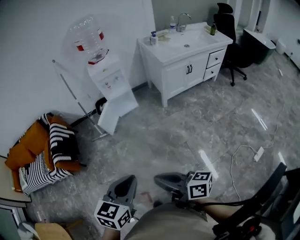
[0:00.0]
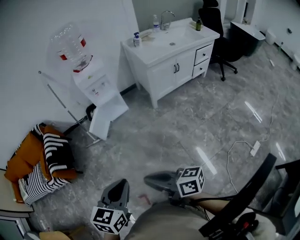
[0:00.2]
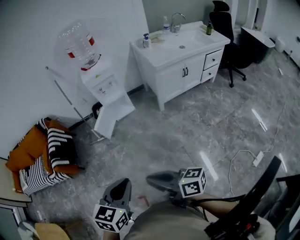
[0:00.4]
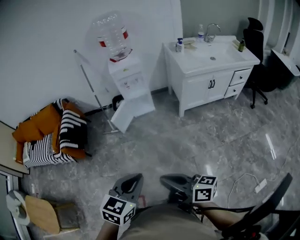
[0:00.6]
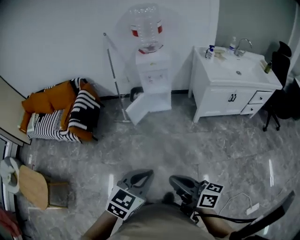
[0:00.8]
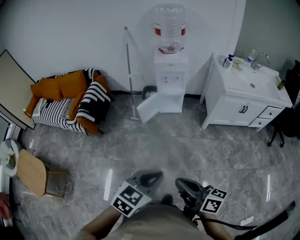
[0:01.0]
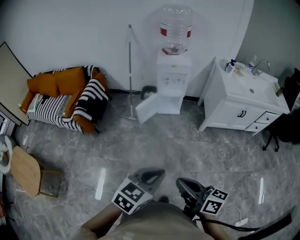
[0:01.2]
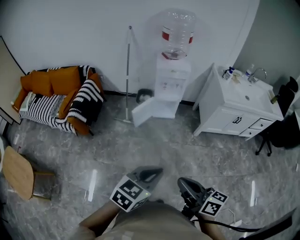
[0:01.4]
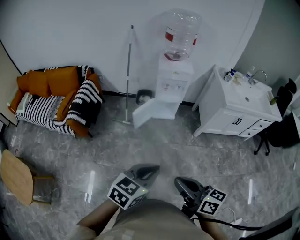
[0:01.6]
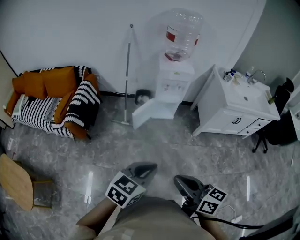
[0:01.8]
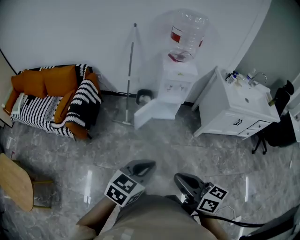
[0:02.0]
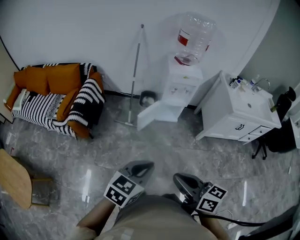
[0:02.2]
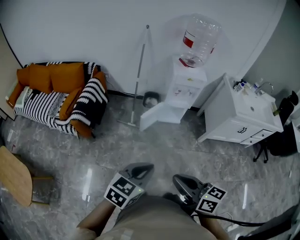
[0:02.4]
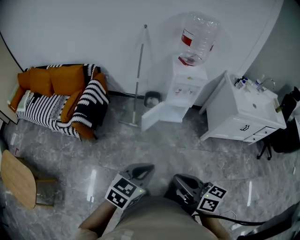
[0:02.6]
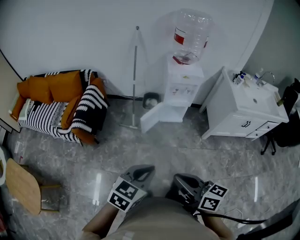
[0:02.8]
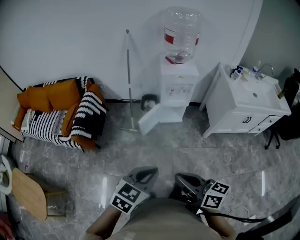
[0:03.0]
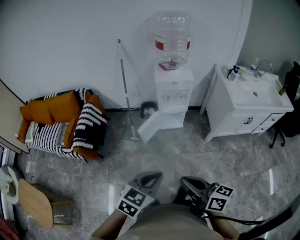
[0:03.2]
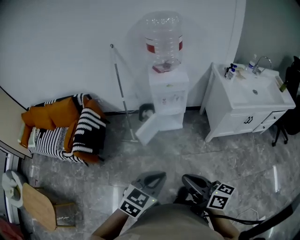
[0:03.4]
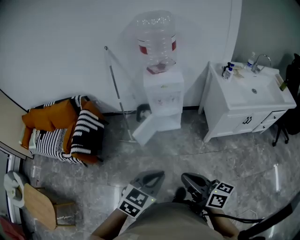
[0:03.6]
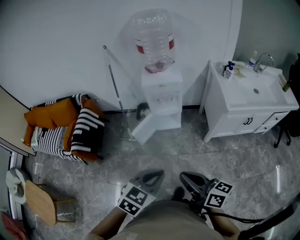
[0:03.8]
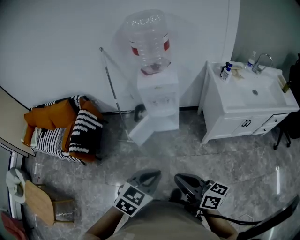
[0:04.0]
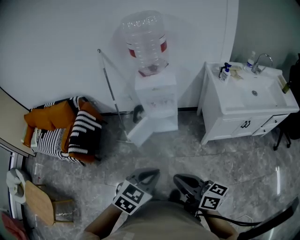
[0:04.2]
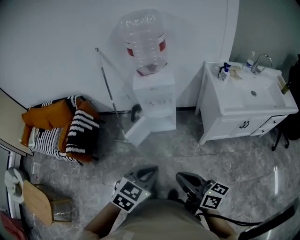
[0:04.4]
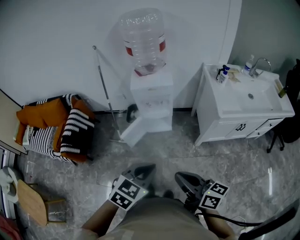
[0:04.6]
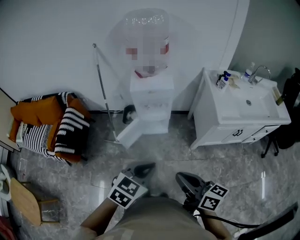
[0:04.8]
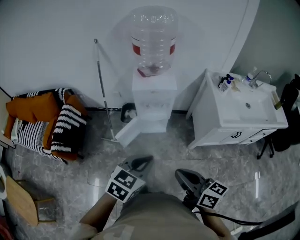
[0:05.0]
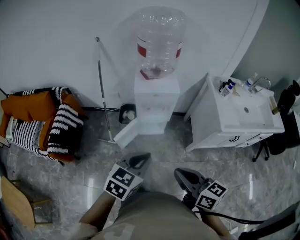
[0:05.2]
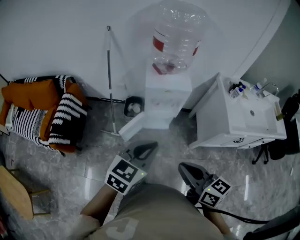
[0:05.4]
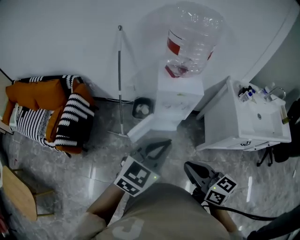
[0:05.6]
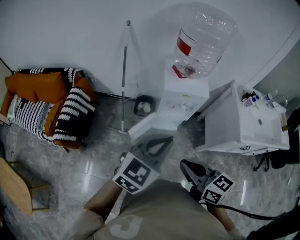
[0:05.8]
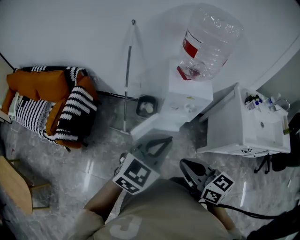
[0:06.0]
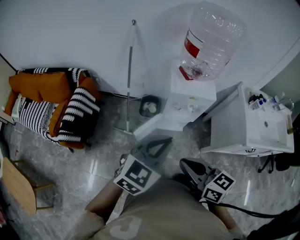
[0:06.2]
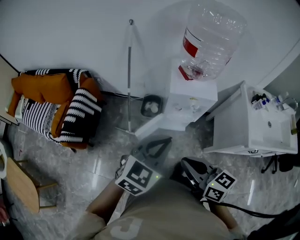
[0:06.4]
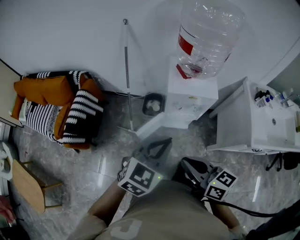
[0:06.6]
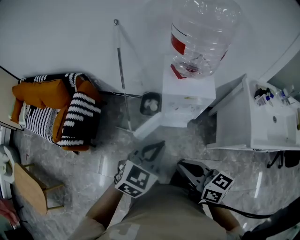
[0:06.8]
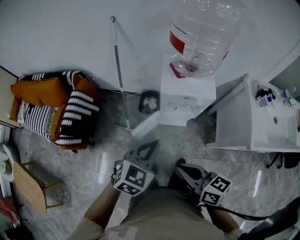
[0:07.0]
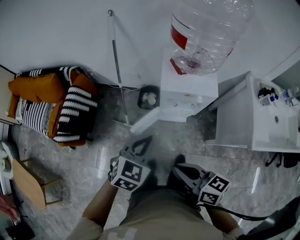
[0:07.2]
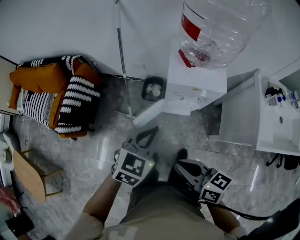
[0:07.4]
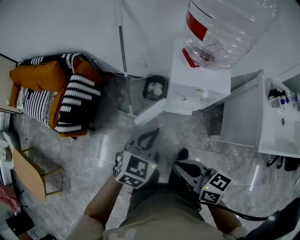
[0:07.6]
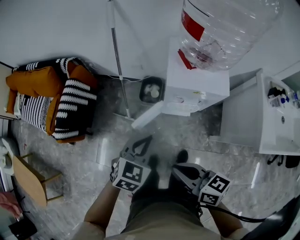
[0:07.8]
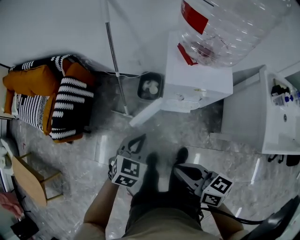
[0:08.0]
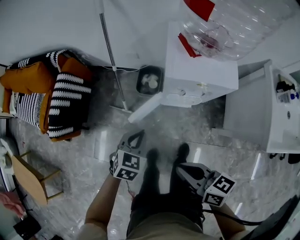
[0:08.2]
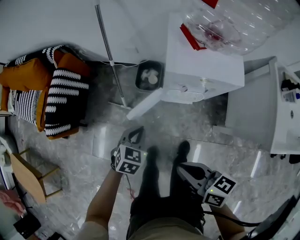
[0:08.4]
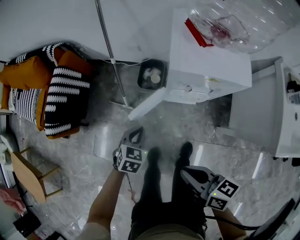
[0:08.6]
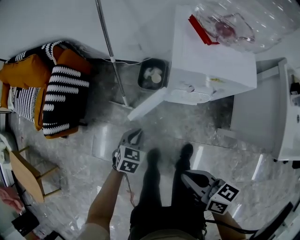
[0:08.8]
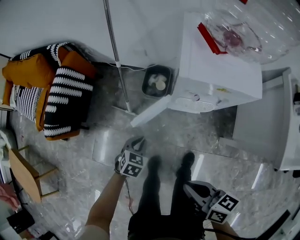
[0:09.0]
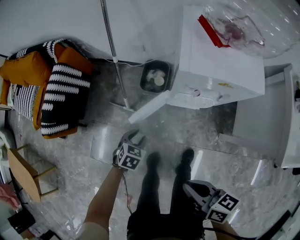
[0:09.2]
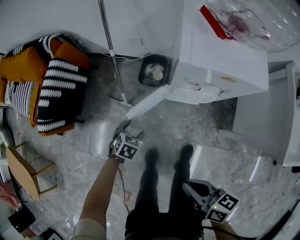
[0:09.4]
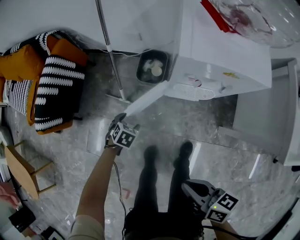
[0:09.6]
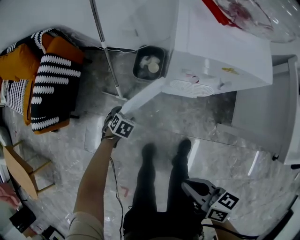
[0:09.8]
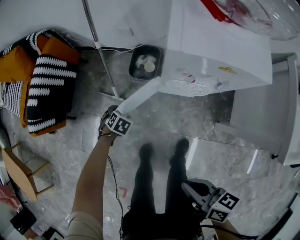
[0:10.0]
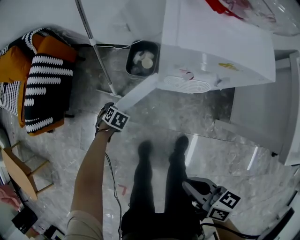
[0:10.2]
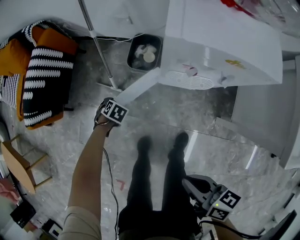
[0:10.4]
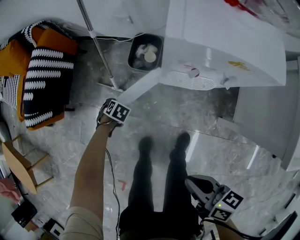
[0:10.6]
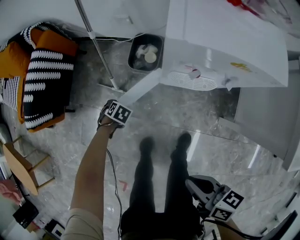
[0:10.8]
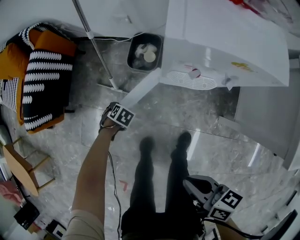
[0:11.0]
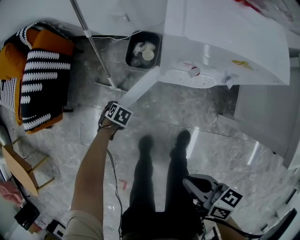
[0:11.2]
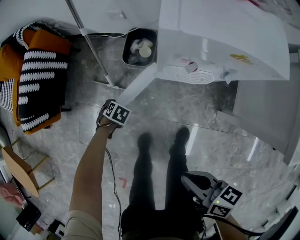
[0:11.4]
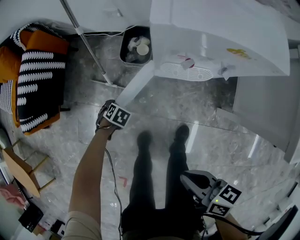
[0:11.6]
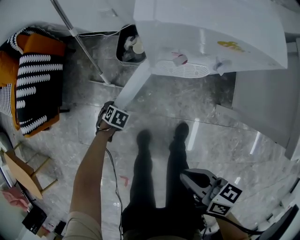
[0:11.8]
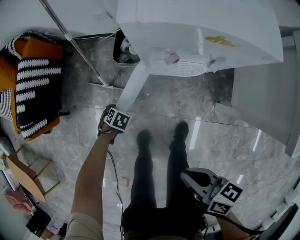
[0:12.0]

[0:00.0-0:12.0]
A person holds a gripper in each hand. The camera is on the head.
0:00.0 to 0:01.6: Both grippers travel together forward, approximately 15 cm. The left gripper travels to the right and back again, roughly 10 cm each way.
0:01.6 to 0:03.0: The grippers both shift forward by approximately 10 cm.
0:03.0 to 0:04.4: The two grippers go some 25 cm to the right and forward.
0:04.4 to 0:06.0: The right gripper goes roughly 30 cm to the left and forward, and swivels approximately 30 degrees; the left gripper shifts roughly 30 cm forward and to the left, and changes its angle by some 20 degrees.
0:06.0 to 0:07.6: The left gripper goes approximately 20 cm downward and forward, and swivels roughly 20 degrees, while the right gripper goes some 10 cm downward and forward.
0:07.6 to 0:09.0: The left gripper moves downward, roughly 35 cm, and swivels some 20 degrees. Meanwhile the right gripper shifts roughly 15 cm downward.
0:09.0 to 0:10.4: The right gripper is displaced downward by about 5 cm, while the left gripper travels downward by some 20 cm, changes its angle by about 30 degrees, and opens up.
0:10.4 to 0:12.0: The left gripper changes place by roughly 10 cm.

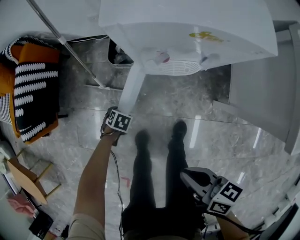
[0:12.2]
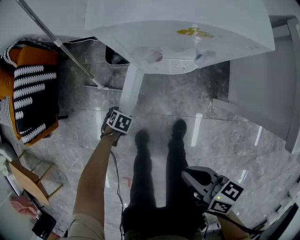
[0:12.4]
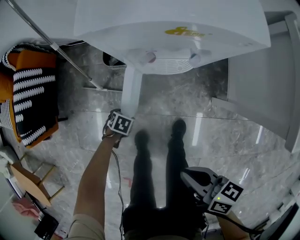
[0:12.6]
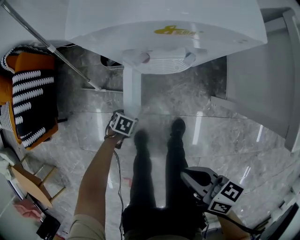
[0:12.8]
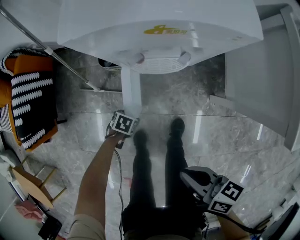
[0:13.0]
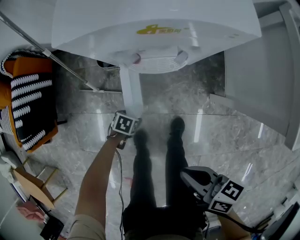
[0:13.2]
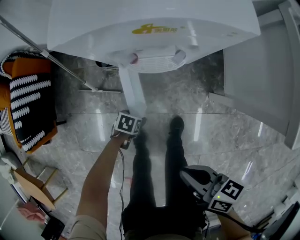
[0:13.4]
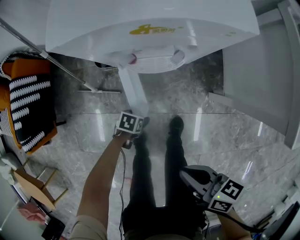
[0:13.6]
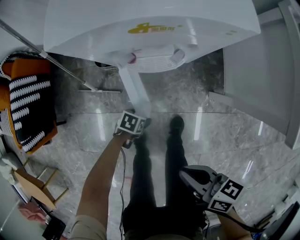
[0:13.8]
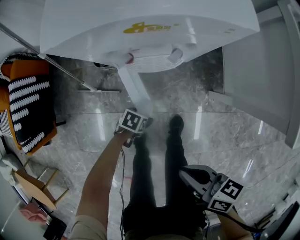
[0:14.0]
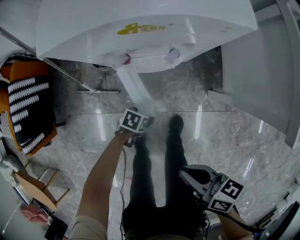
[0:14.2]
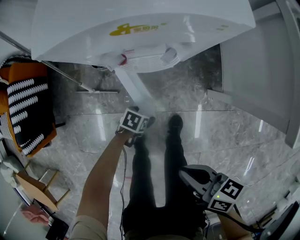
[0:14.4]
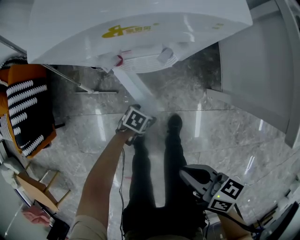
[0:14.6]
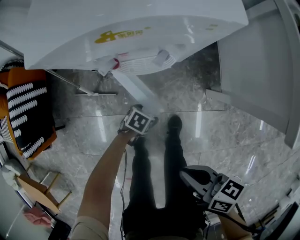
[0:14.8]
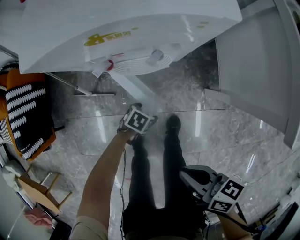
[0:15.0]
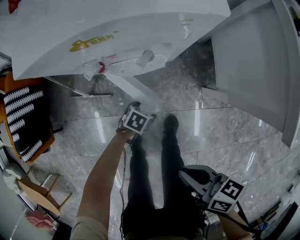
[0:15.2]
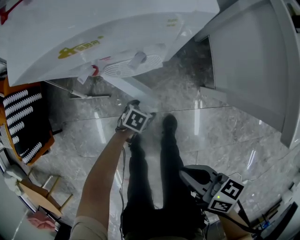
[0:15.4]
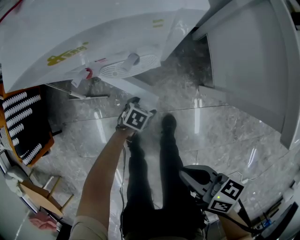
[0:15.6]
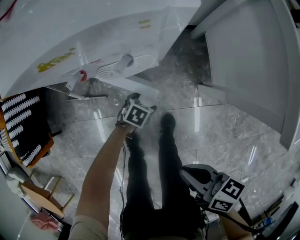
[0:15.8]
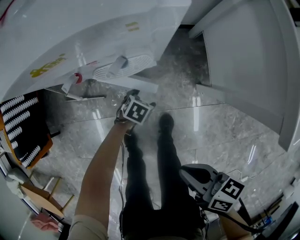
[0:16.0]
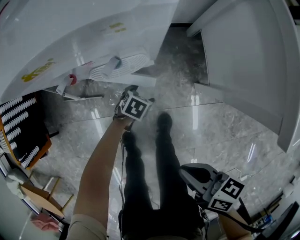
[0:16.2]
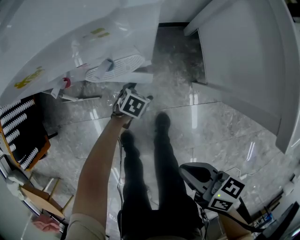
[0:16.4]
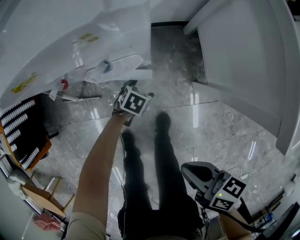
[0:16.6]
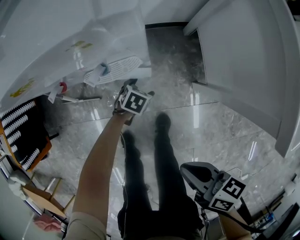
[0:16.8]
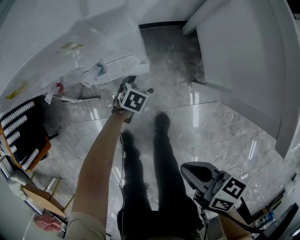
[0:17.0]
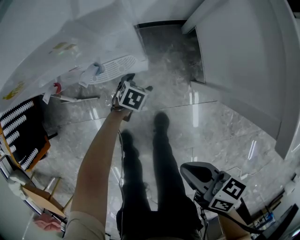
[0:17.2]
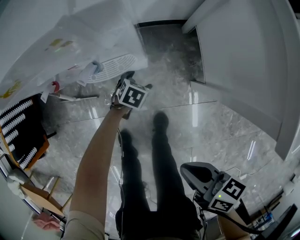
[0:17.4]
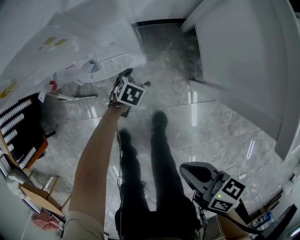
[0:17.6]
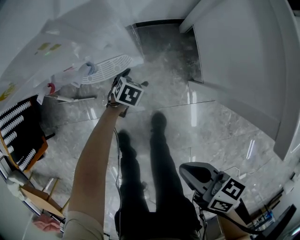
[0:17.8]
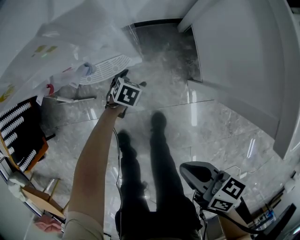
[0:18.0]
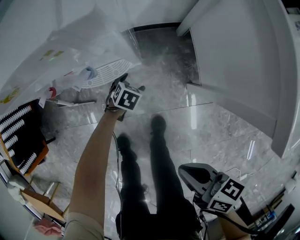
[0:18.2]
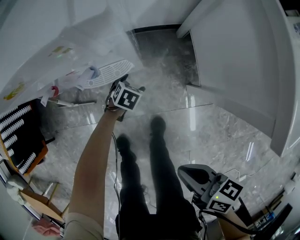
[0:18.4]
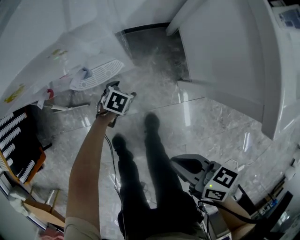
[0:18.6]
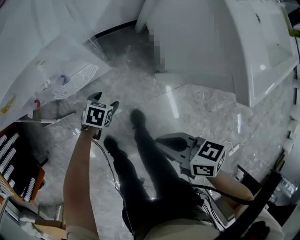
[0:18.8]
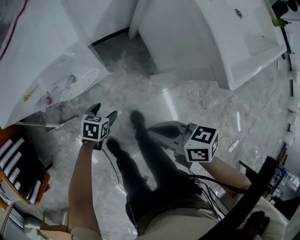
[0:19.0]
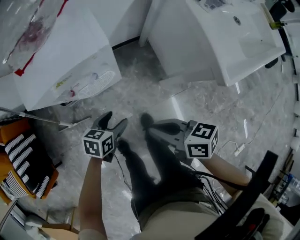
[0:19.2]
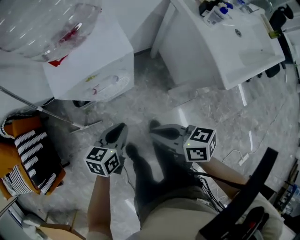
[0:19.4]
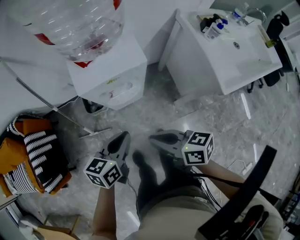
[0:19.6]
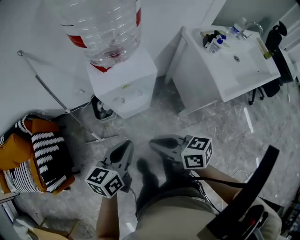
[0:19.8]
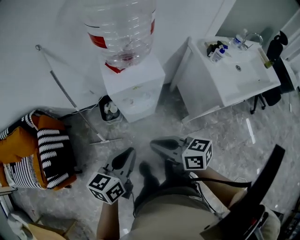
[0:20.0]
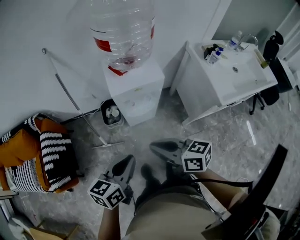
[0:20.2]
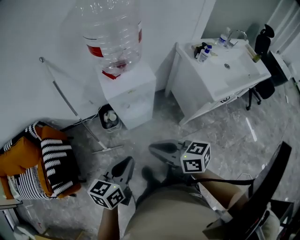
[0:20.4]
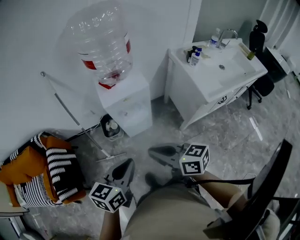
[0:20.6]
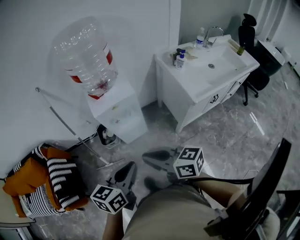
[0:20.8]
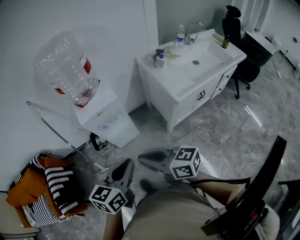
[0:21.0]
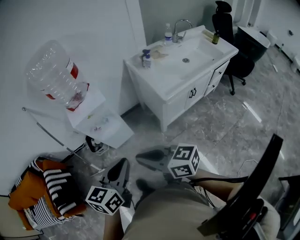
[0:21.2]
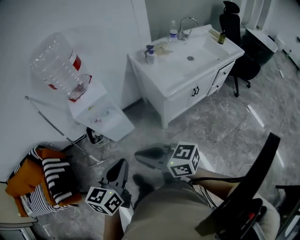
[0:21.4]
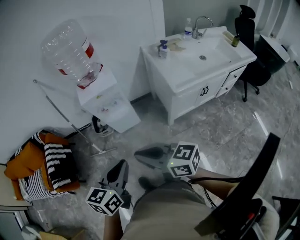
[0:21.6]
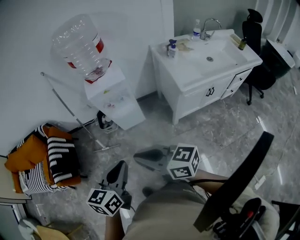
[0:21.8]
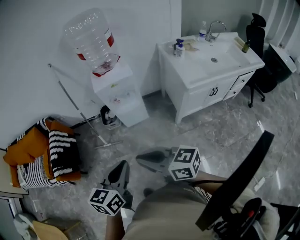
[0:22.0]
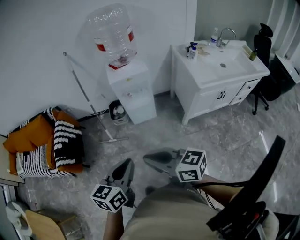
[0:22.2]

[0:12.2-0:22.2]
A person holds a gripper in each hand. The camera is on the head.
0:12.2 to 0:13.6: The left gripper changes place by roughly 15 cm.
0:13.6 to 0:15.0: The left gripper ends up roughly 10 cm from where it was.
0:15.0 to 0:16.4: The left gripper ends up about 10 cm from where it was. Meanwhile the right gripper changes place by approximately 10 cm.
0:16.4 to 0:18.0: The left gripper shifts by about 5 cm.
0:18.0 to 0:19.4: The left gripper moves upward, approximately 40 cm, tilts its fingers approximately 30 degrees upward, and closes; the right gripper travels upward by roughly 20 cm.
0:19.4 to 0:20.8: The two grippers go some 30 cm upward and backward. The right gripper turns by about 20 degrees.
0:20.8 to 0:22.2: Both grippers move backward, roughly 20 cm.

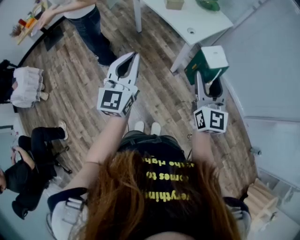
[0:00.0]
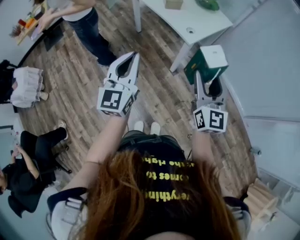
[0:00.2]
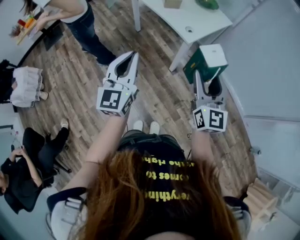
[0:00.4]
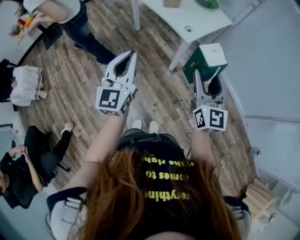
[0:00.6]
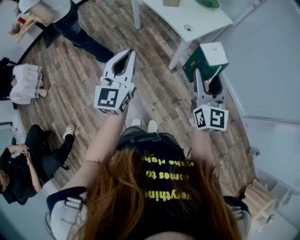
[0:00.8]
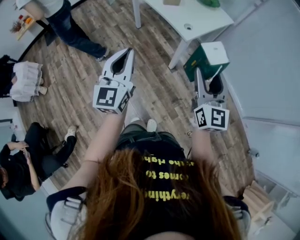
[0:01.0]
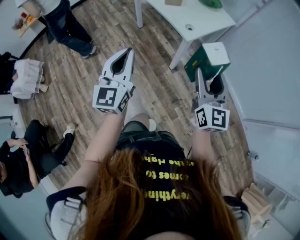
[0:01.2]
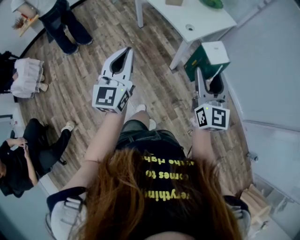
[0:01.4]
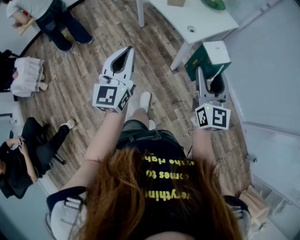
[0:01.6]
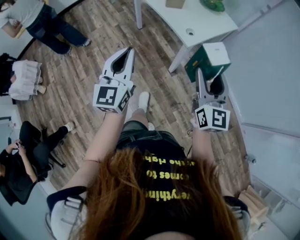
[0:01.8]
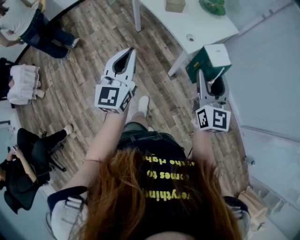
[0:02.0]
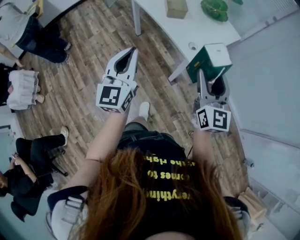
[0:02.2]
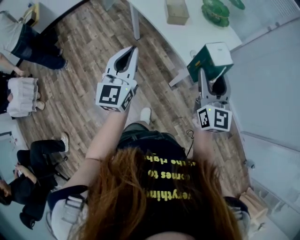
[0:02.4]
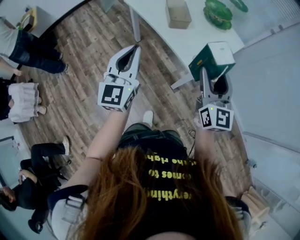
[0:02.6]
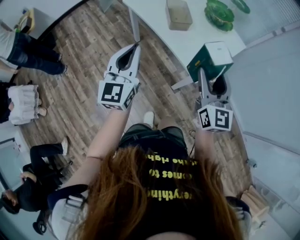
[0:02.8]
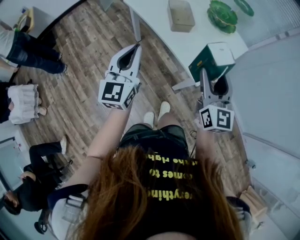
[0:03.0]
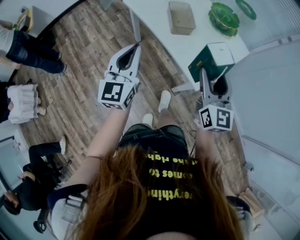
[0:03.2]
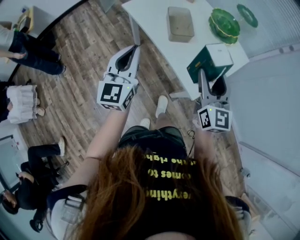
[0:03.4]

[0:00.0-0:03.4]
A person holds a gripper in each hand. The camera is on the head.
0:00.0 to 0:01.6: The right gripper moves approximately 5 cm.
0:01.6 to 0:03.4: Both grippers travel together forward, about 40 cm.
